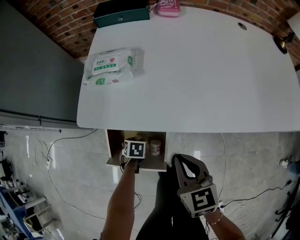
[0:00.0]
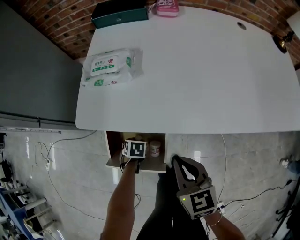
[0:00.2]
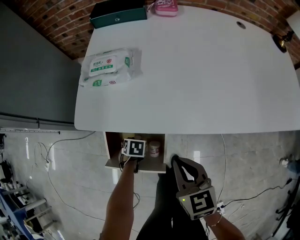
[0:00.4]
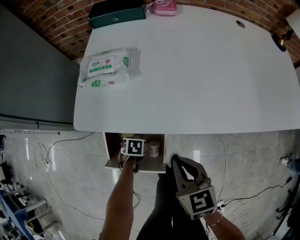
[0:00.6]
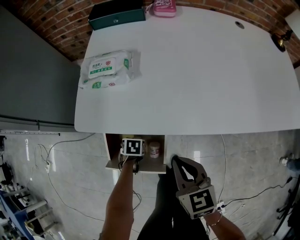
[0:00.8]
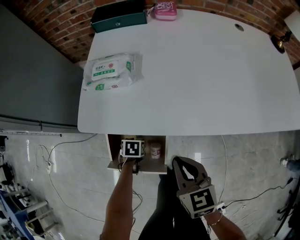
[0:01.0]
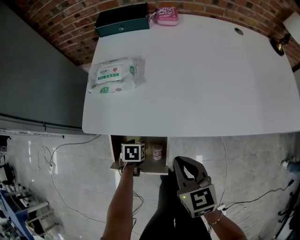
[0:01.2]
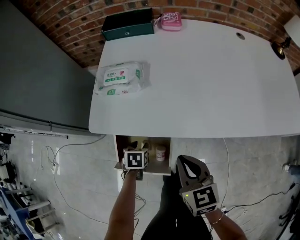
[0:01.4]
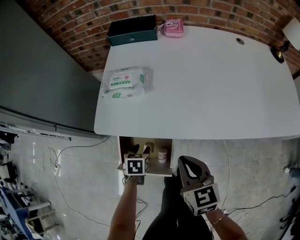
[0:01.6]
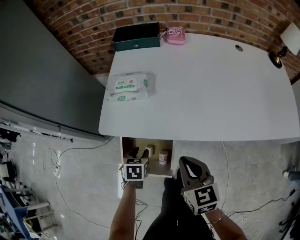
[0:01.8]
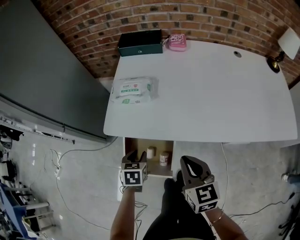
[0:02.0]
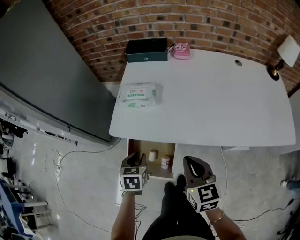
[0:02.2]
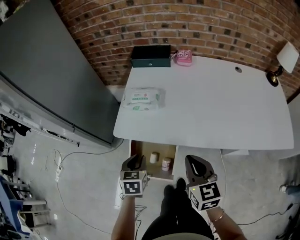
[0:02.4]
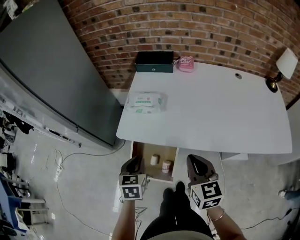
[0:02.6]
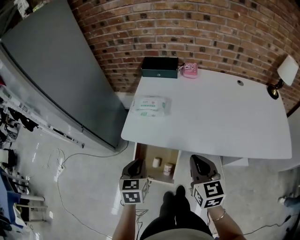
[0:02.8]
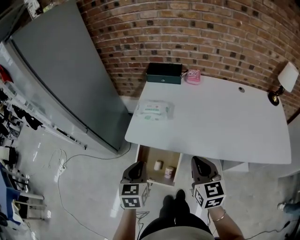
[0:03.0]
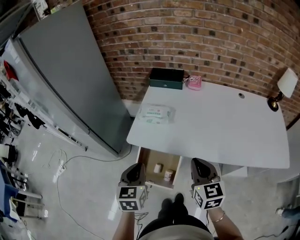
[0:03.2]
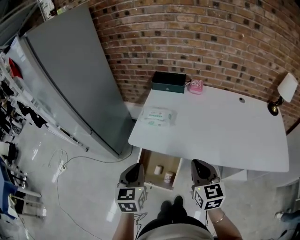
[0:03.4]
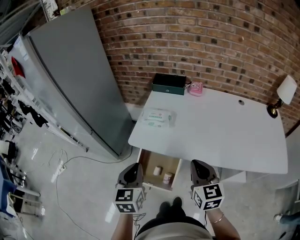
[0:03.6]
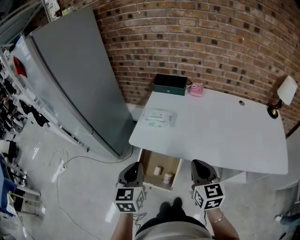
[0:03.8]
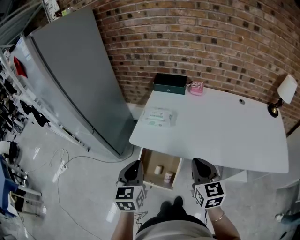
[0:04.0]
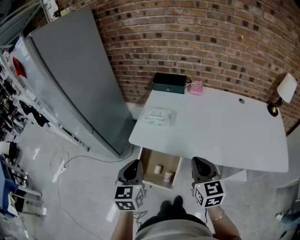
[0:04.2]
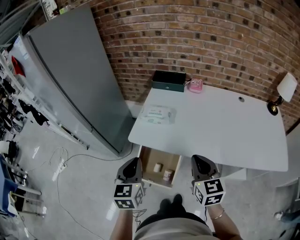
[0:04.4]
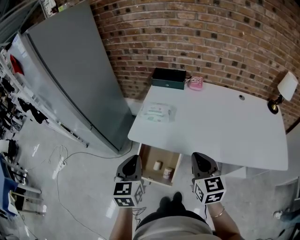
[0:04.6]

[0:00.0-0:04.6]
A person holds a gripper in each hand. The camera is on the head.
0:00.0 to 0:01.6: The left gripper shifts approximately 15 cm upward.
0:01.6 to 0:03.0: The left gripper travels upward by about 30 cm, tips its fingers upward by some 30 degrees, and closes up, while the right gripper moves upward, some 15 cm.
0:03.0 to 0:04.6: The left gripper travels upward by roughly 10 cm.

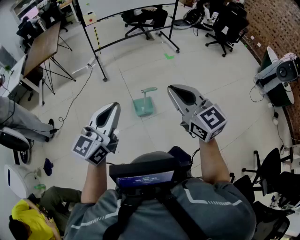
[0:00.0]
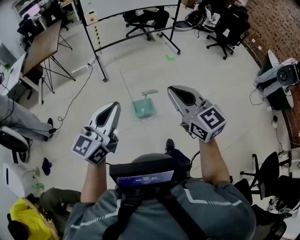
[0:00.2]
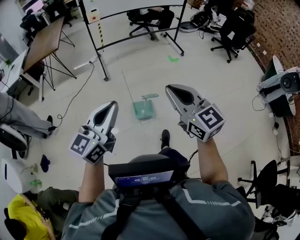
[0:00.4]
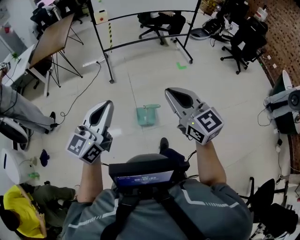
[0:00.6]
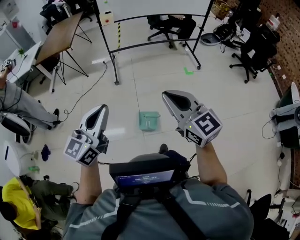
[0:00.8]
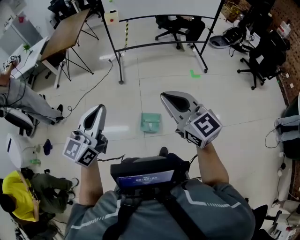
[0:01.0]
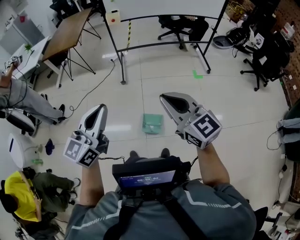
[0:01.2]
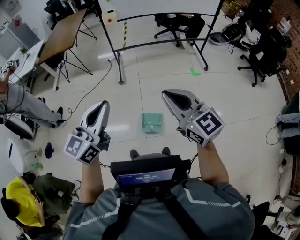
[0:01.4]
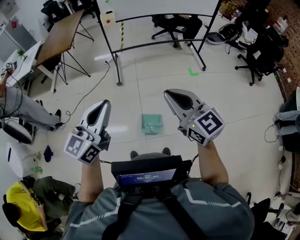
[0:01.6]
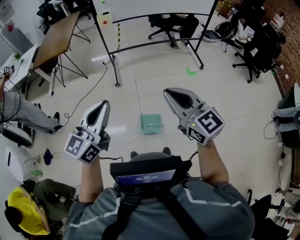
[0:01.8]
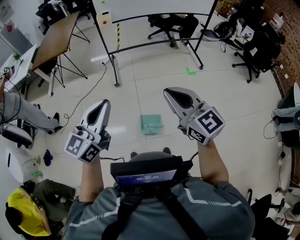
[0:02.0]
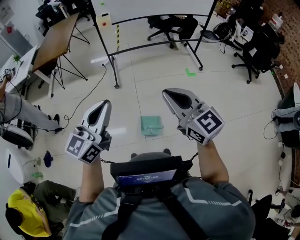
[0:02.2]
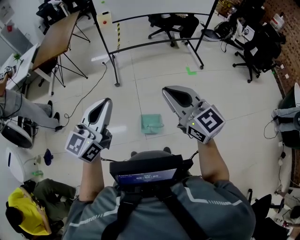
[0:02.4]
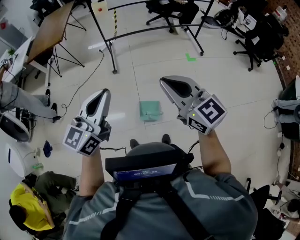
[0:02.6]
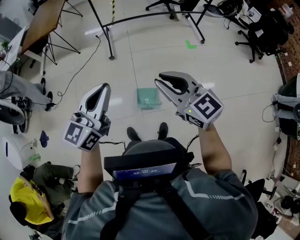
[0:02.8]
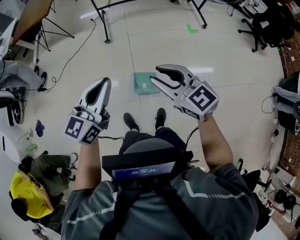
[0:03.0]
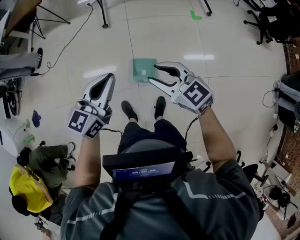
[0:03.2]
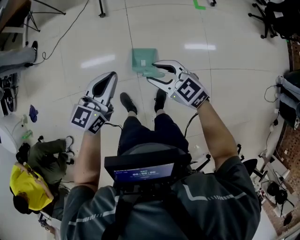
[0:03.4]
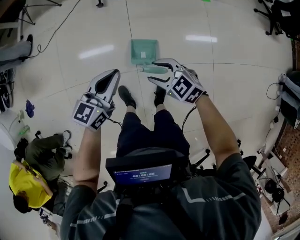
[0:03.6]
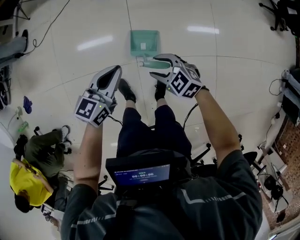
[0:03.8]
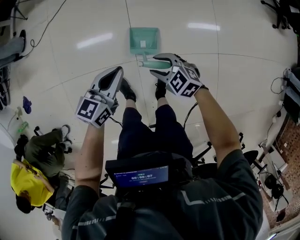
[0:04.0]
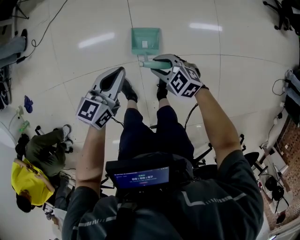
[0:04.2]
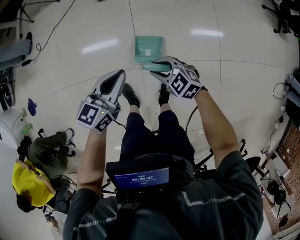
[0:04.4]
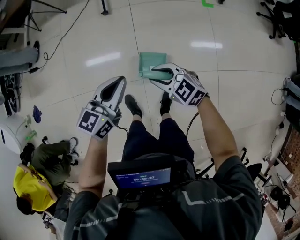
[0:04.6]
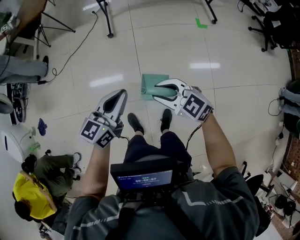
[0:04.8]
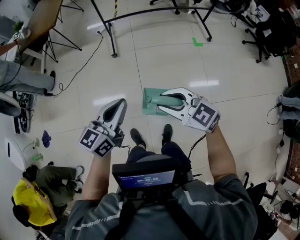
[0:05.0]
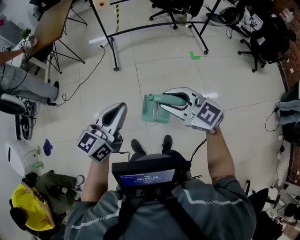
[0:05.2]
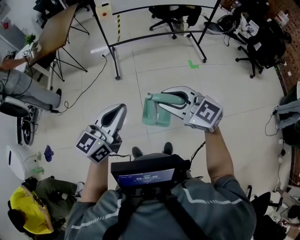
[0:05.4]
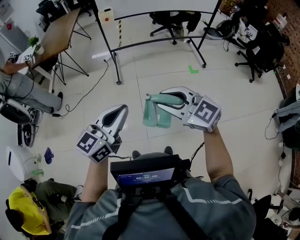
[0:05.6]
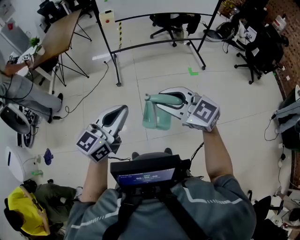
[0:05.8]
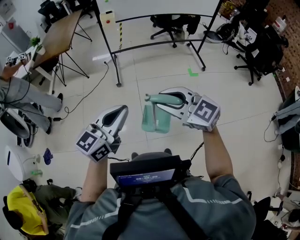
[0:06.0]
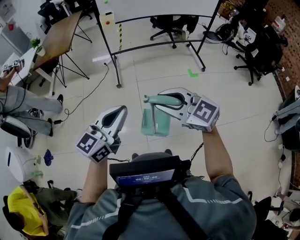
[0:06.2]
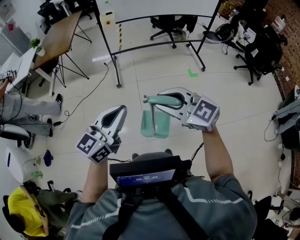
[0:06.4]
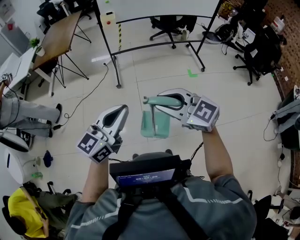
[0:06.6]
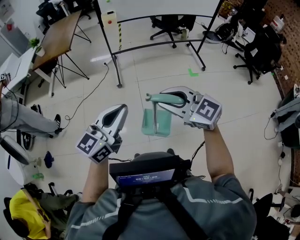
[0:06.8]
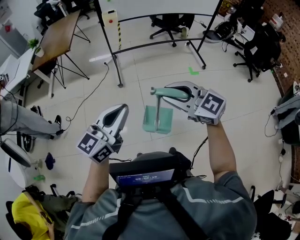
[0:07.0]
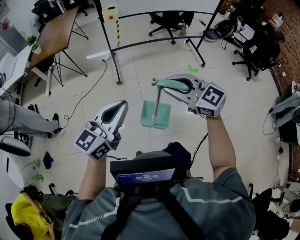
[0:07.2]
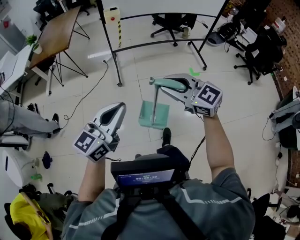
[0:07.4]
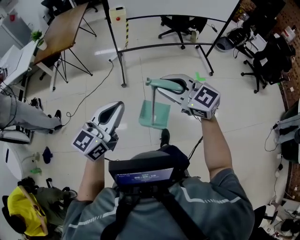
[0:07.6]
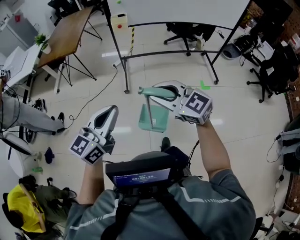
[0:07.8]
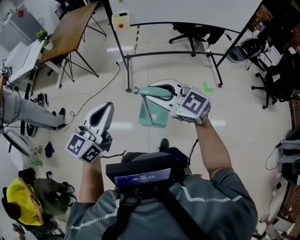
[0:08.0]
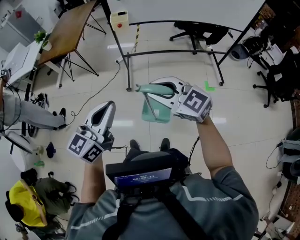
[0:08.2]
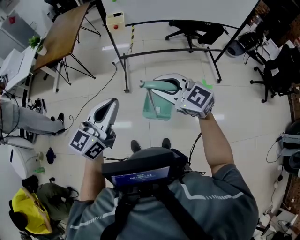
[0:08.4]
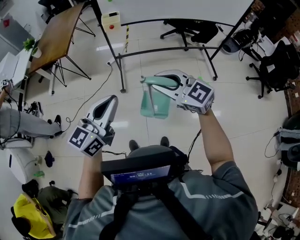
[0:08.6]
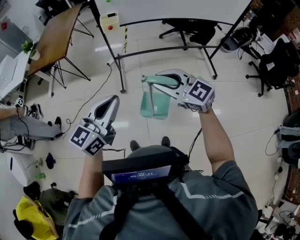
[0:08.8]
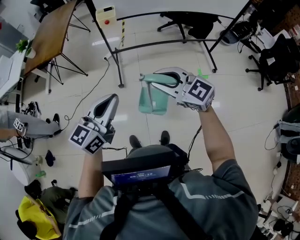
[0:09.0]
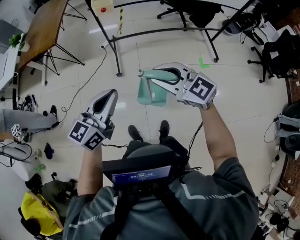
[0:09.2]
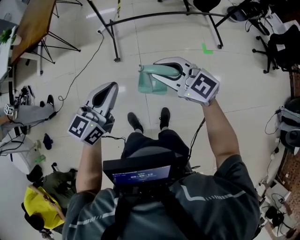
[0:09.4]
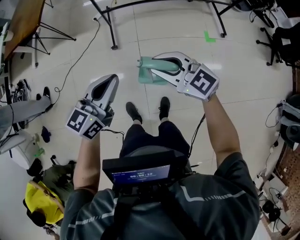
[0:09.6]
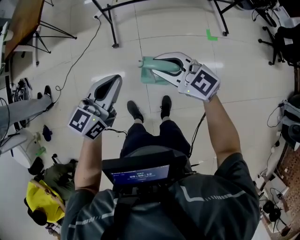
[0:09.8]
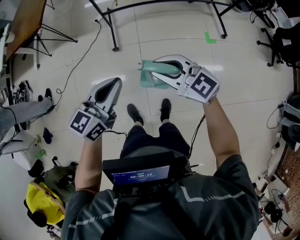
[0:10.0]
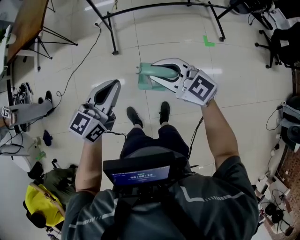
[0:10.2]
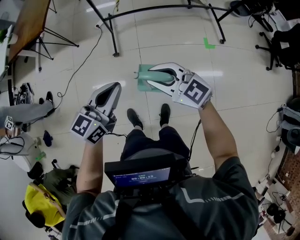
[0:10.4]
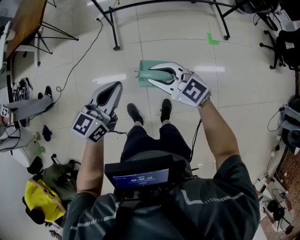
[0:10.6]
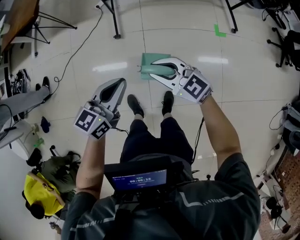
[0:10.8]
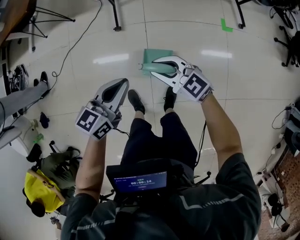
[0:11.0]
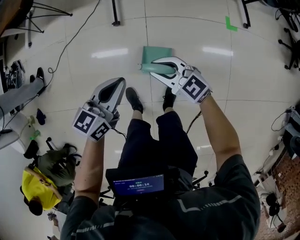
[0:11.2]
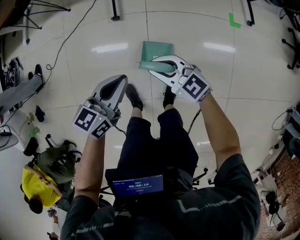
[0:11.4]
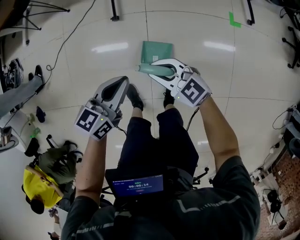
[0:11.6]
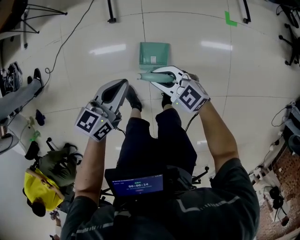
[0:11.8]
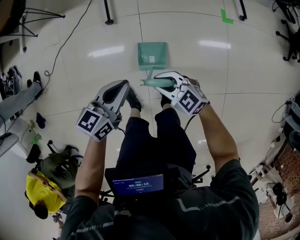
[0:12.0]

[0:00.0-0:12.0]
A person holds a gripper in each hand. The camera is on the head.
0:00.0 to 0:01.6: The pair of grippers is taken forward, approximately 40 cm.
0:01.6 to 0:03.0: Both grippers travel together downward and forward, approximately 20 cm. The right gripper opens.
0:03.0 to 0:04.4: The two grippers go roughly 50 cm downward. The right gripper swivels approximately 30 degrees, and opens and closes again.
0:04.4 to 0:06.0: The two grippers go approximately 60 cm upward. The right gripper turns by about 30 degrees. Meanwhile the left gripper swivels roughly 20 degrees.
0:06.0 to 0:07.6: The left gripper heads forward and to the left, covering approximately 20 cm. Meanwhile the right gripper heads forward, covering approximately 25 cm.
0:07.6 to 0:09.0: The two grippers go approximately 30 cm forward.
0:09.0 to 0:10.4: Both grippers move downward, roughly 20 cm.
0:10.4 to 0:12.0: Both grippers travel together downward, about 40 cm.

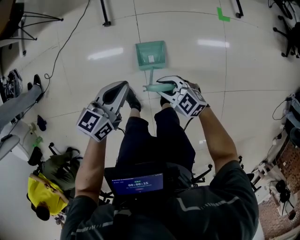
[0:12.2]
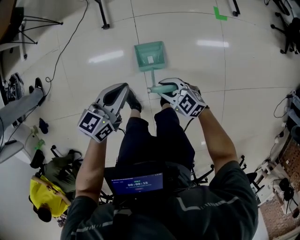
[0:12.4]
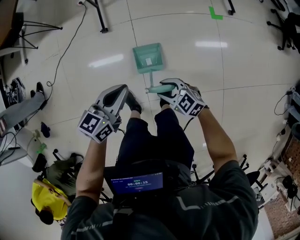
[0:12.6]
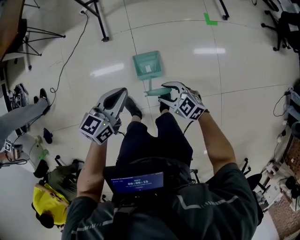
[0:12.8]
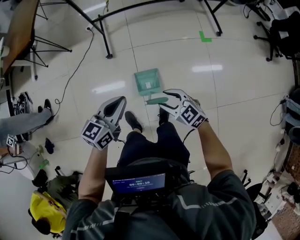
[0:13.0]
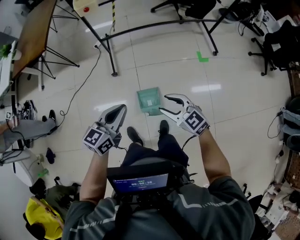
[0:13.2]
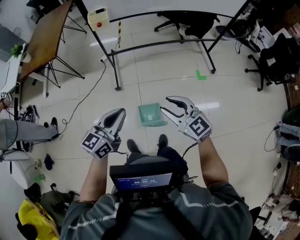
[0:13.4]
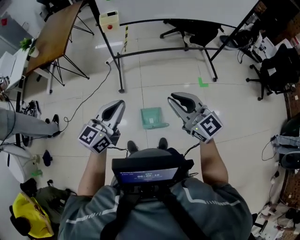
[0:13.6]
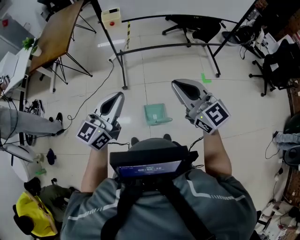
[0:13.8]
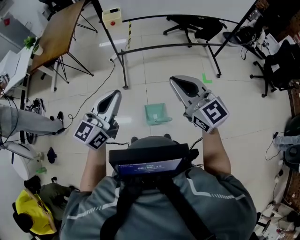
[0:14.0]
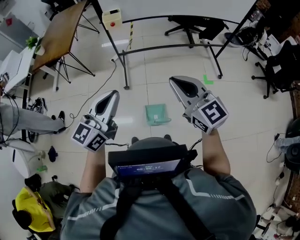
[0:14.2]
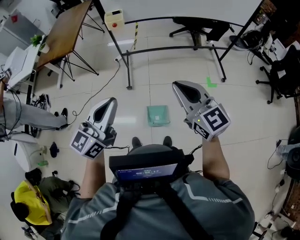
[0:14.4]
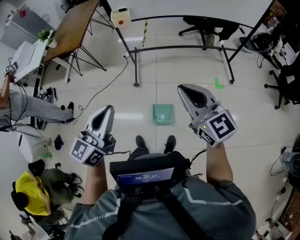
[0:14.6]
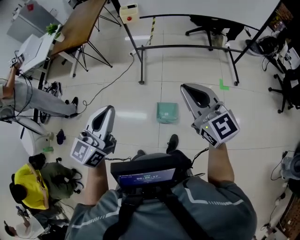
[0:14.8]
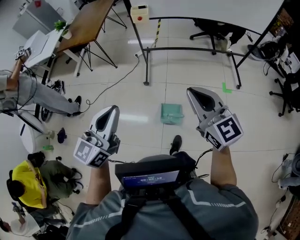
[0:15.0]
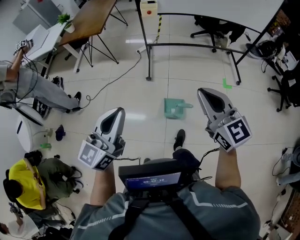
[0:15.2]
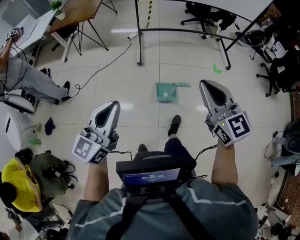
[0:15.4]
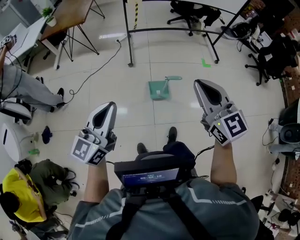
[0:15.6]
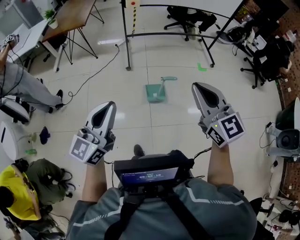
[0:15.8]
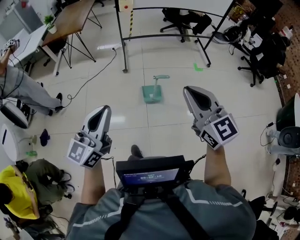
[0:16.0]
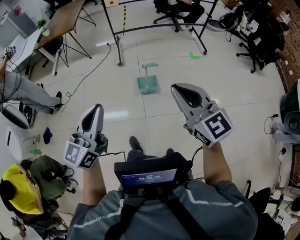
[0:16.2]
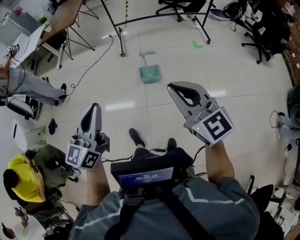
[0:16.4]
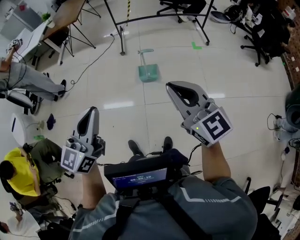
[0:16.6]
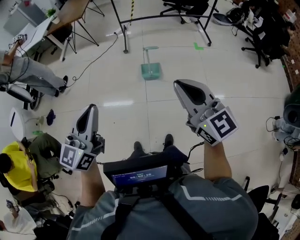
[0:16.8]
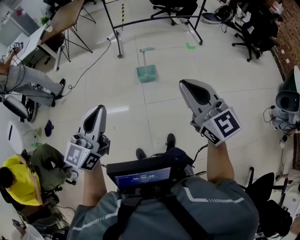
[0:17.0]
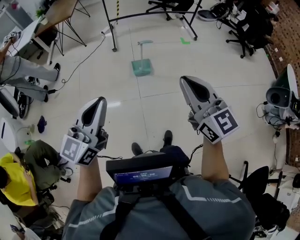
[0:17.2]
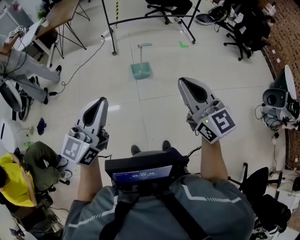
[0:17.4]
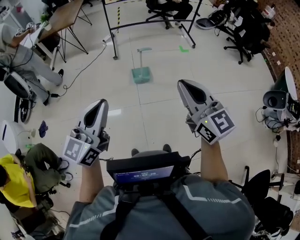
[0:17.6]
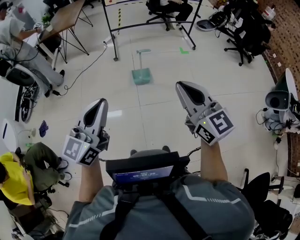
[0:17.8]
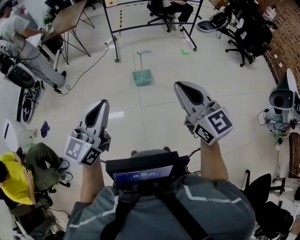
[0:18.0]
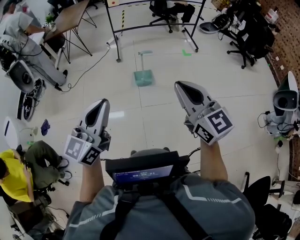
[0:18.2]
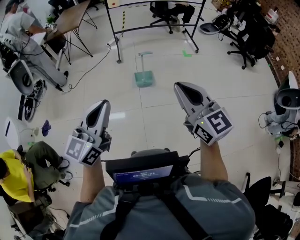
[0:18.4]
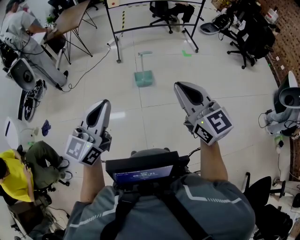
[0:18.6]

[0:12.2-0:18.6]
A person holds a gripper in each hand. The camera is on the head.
0:12.2 to 0:13.8: Both grippers travel together upward, about 60 cm. The left gripper changes its angle by approximately 30 degrees. The right gripper tilts its fingers some 30 degrees upward, and closes its fingers.
0:13.8 to 0:15.4: The two grippers go roughly 40 cm backward and to the left.
0:15.4 to 0:17.0: The pair of grippers is taken backward, some 60 cm.
0:17.0 to 0:18.6: The two grippers go some 10 cm backward.

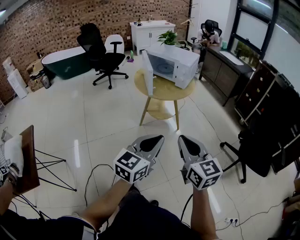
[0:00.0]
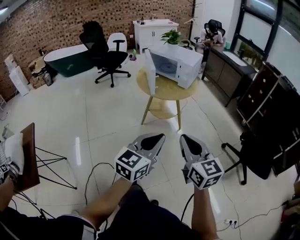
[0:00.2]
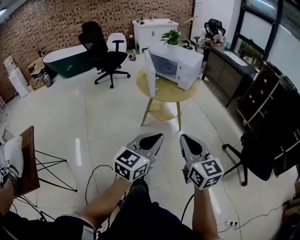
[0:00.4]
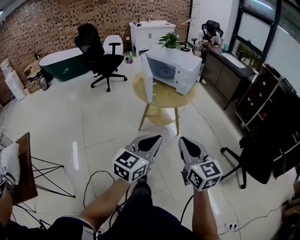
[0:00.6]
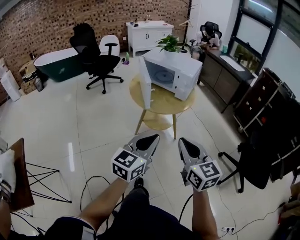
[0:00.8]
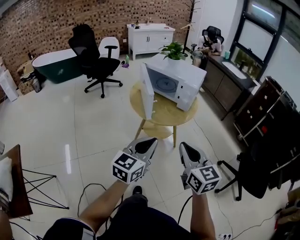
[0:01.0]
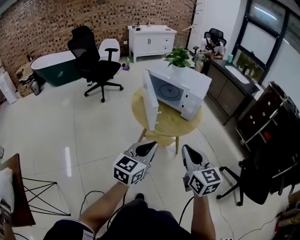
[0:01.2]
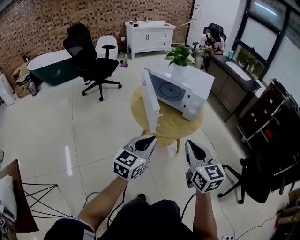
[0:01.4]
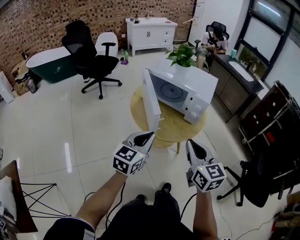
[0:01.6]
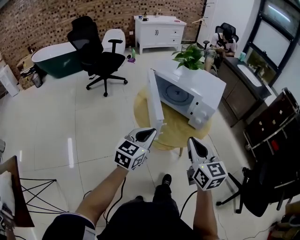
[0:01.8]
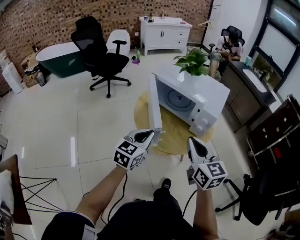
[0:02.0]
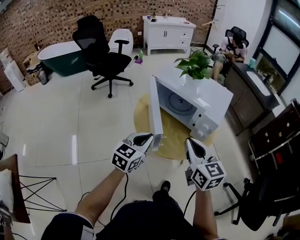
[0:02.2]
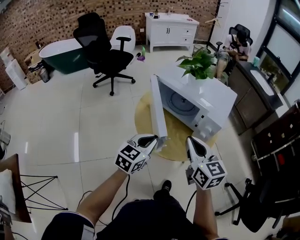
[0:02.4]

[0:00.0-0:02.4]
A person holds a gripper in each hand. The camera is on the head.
0:00.0 to 0:01.2: Both grippers move forward, some 25 cm.
0:01.2 to 0:02.4: The grippers both shift forward by roughly 25 cm.
